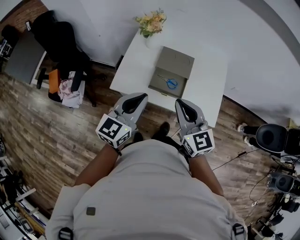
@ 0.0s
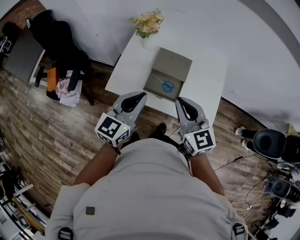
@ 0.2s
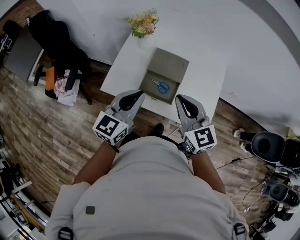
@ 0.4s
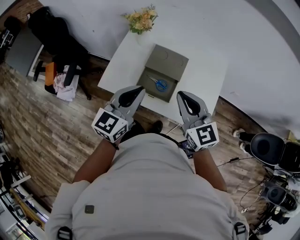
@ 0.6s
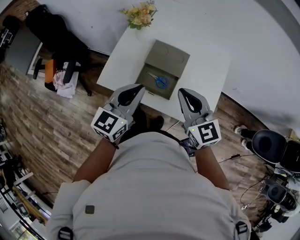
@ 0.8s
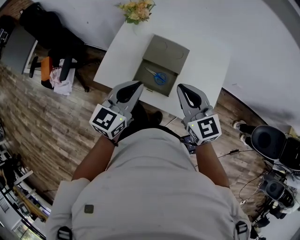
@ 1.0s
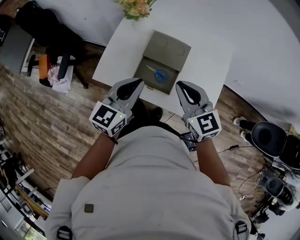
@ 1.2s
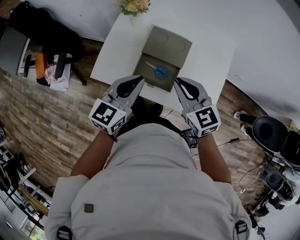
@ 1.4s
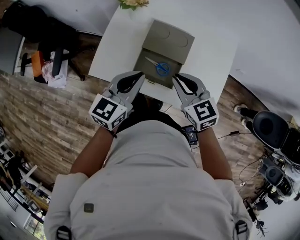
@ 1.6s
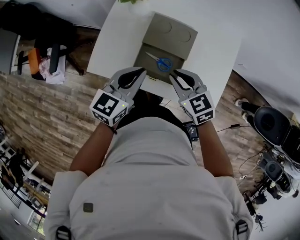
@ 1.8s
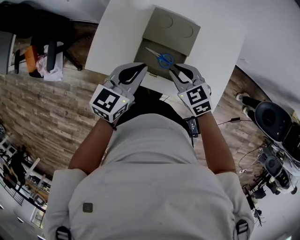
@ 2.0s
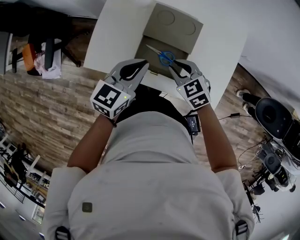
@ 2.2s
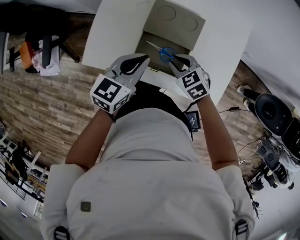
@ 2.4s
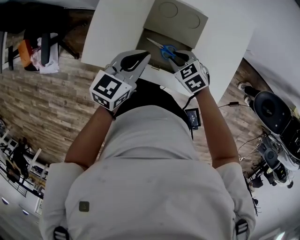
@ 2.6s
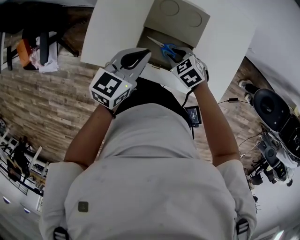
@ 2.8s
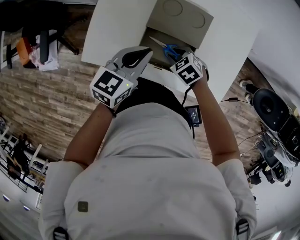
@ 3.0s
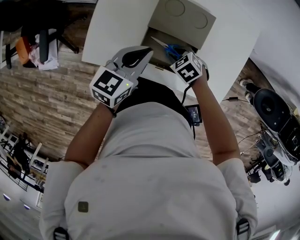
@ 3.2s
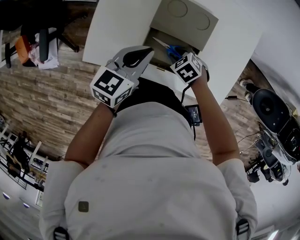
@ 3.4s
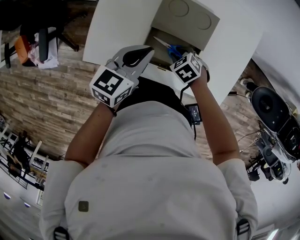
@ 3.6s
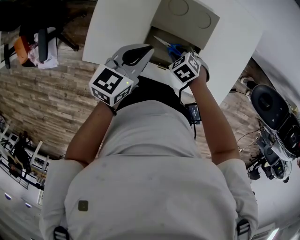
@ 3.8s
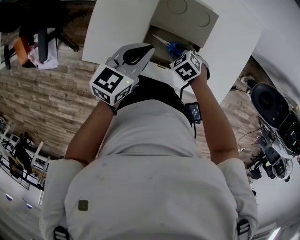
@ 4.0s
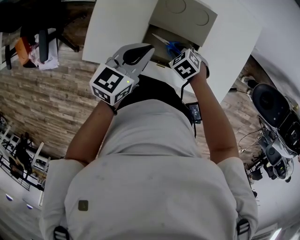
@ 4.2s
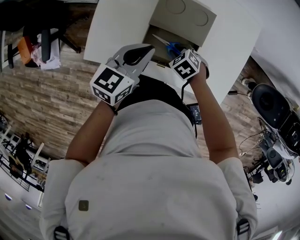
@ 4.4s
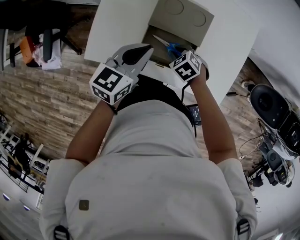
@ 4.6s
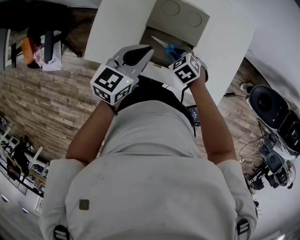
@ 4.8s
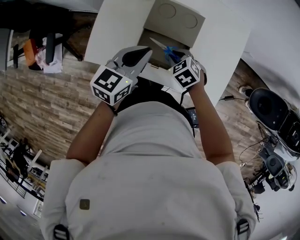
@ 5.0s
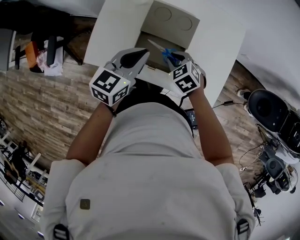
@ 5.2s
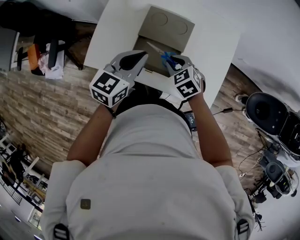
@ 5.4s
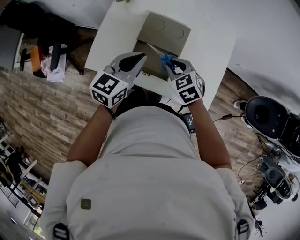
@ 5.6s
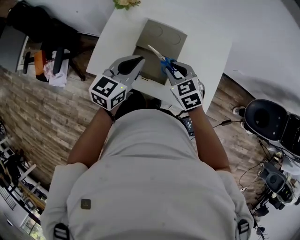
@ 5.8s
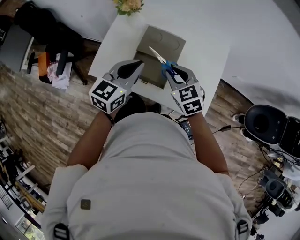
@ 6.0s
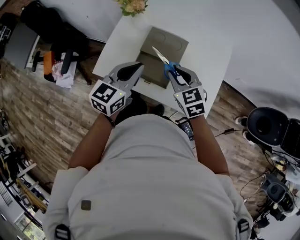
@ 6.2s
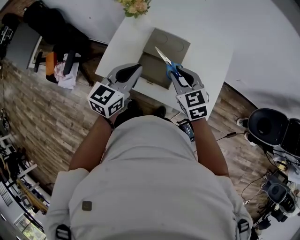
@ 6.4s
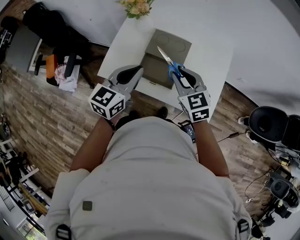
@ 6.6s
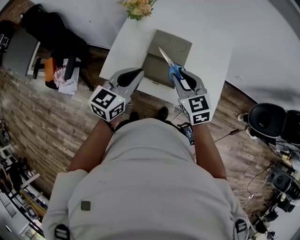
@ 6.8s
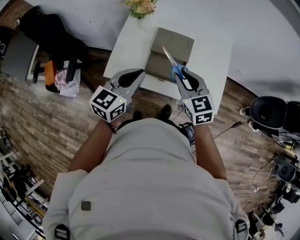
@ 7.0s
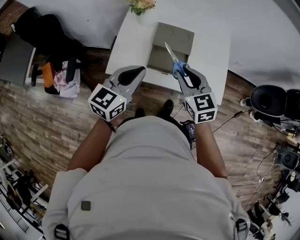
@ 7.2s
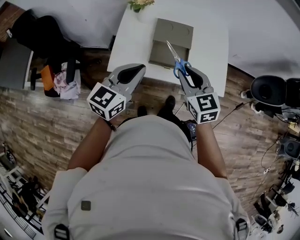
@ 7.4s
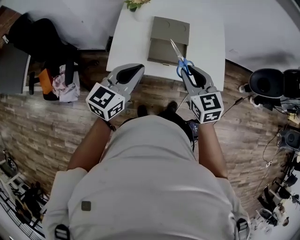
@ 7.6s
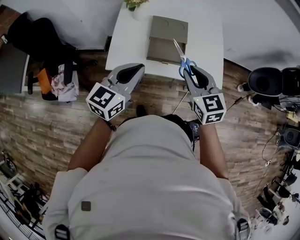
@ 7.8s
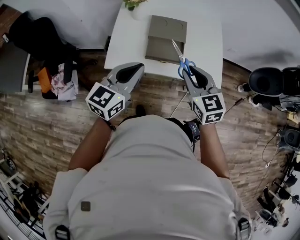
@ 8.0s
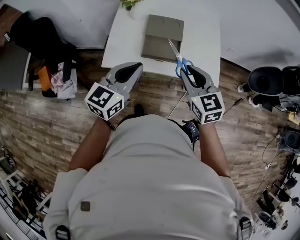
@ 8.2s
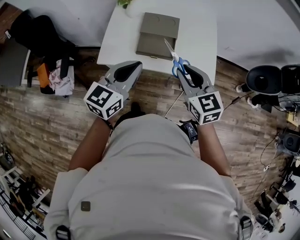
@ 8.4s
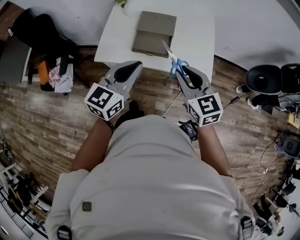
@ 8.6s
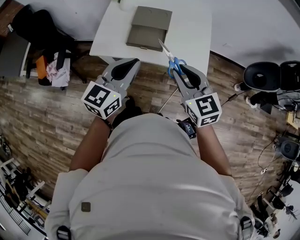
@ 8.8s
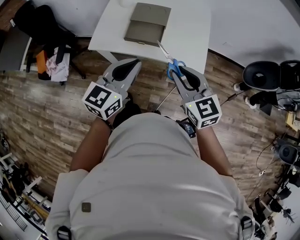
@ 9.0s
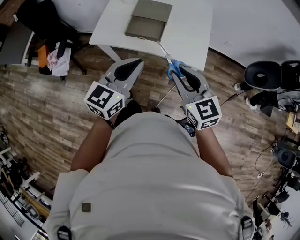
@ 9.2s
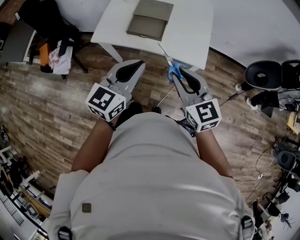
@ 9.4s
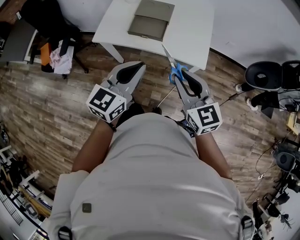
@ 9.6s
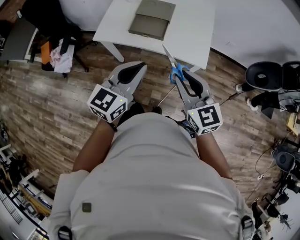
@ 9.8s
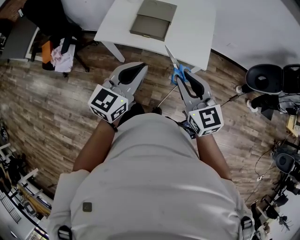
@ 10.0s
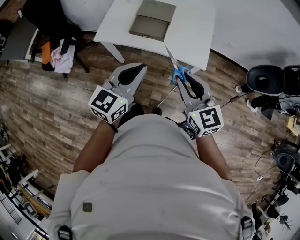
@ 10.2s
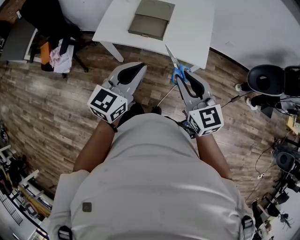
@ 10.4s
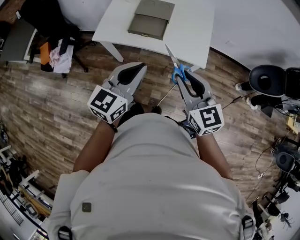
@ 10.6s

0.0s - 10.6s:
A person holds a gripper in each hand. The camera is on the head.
0.0s - 1.6s: The grippers both shift forward, downward and to the right by some 20 cm. The right gripper turns by approximately 20 degrees.
1.6s - 3.0s: The left gripper goes roughly 10 cm downward and forward, while the right gripper travels downward by about 25 cm, tilts its fingers about 40 degrees downward, and opens up.
3.0s - 4.6s: The grippers make only small movements.
4.6s - 6.0s: The right gripper shifts approximately 25 cm upward, and points its fingers about 40 degrees further upward. The left gripper is displaced upward, to the right and backward by approximately 15 cm.
6.0s - 7.6s: The left gripper travels backward and to the left by approximately 20 cm. The right gripper is displaced backward, upward and to the left by about 20 cm, and changes its angle by some 30 degrees.
7.6s - 9.0s: Both grippers travel together to the right and backward, some 20 cm.
9.0s - 10.6s: Both grippers move backward, approximately 5 cm.

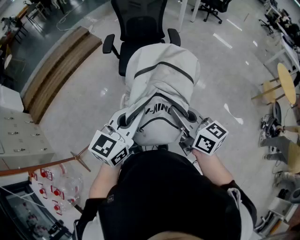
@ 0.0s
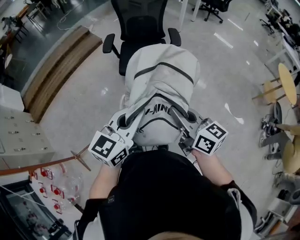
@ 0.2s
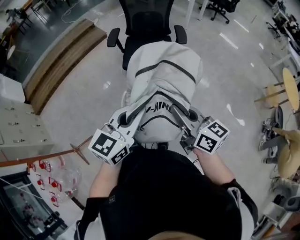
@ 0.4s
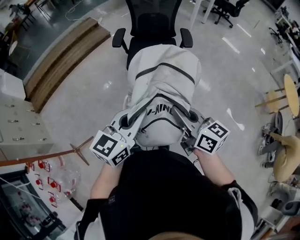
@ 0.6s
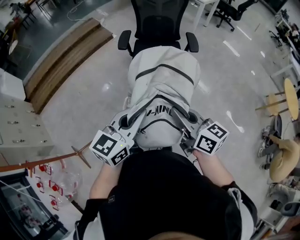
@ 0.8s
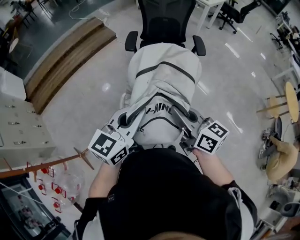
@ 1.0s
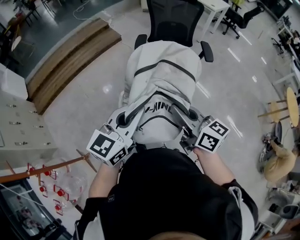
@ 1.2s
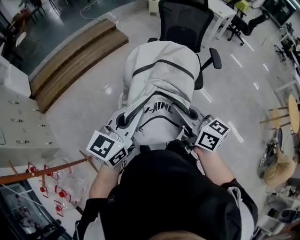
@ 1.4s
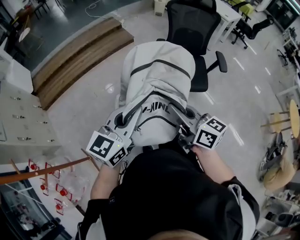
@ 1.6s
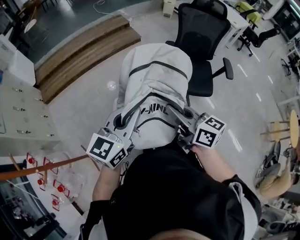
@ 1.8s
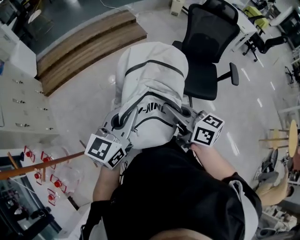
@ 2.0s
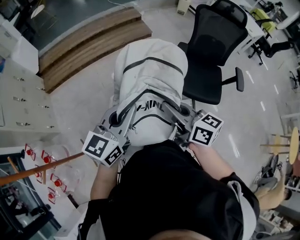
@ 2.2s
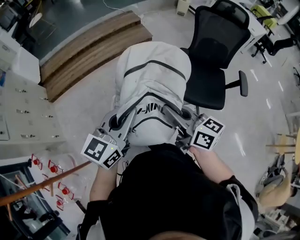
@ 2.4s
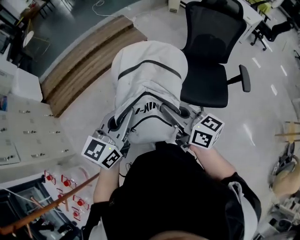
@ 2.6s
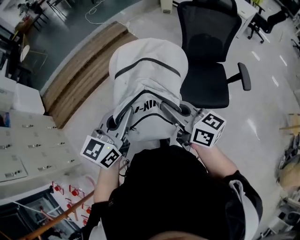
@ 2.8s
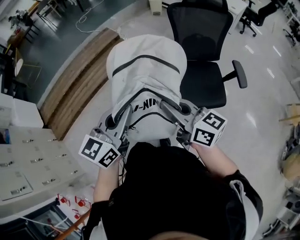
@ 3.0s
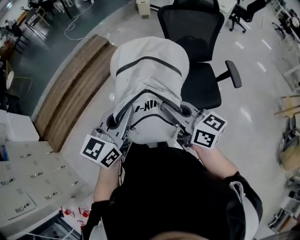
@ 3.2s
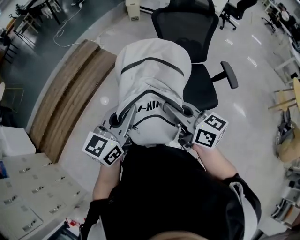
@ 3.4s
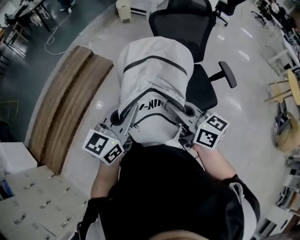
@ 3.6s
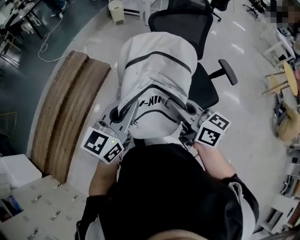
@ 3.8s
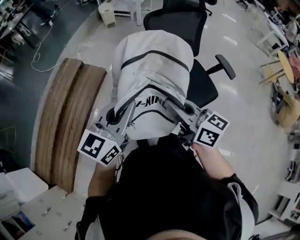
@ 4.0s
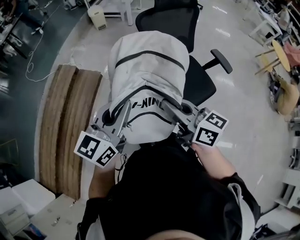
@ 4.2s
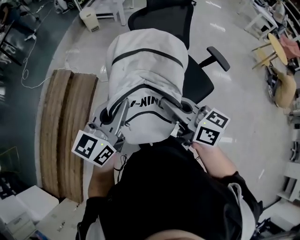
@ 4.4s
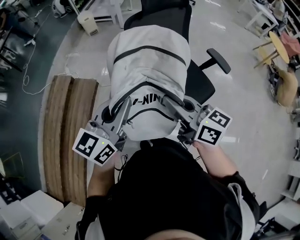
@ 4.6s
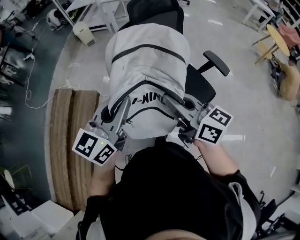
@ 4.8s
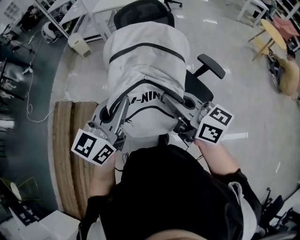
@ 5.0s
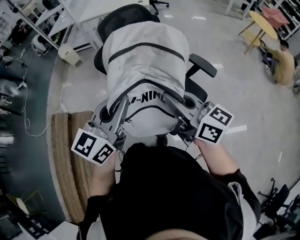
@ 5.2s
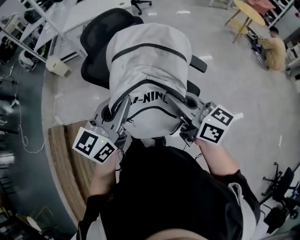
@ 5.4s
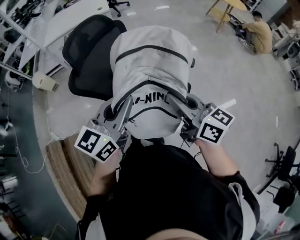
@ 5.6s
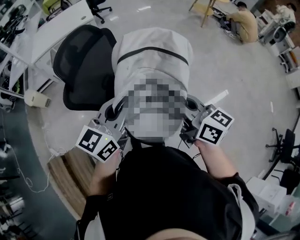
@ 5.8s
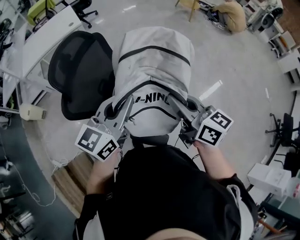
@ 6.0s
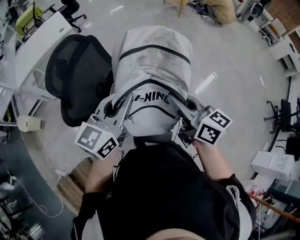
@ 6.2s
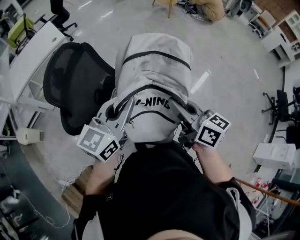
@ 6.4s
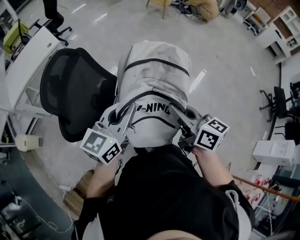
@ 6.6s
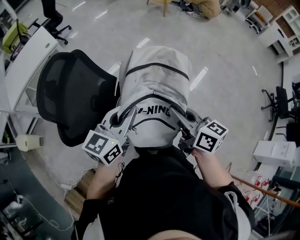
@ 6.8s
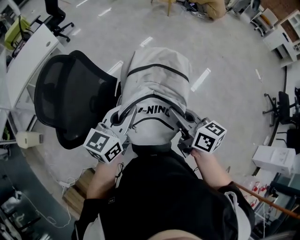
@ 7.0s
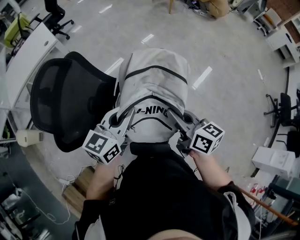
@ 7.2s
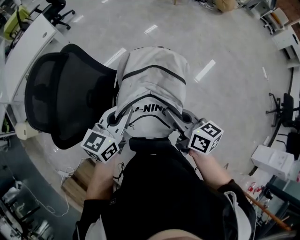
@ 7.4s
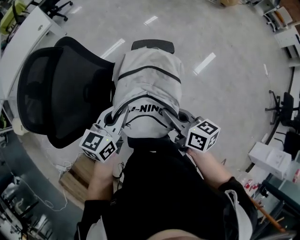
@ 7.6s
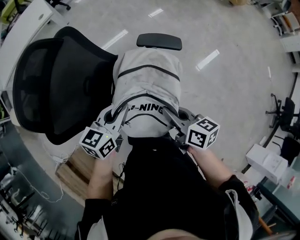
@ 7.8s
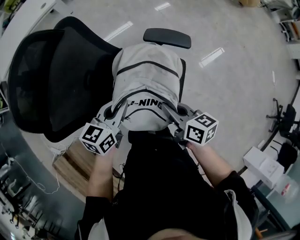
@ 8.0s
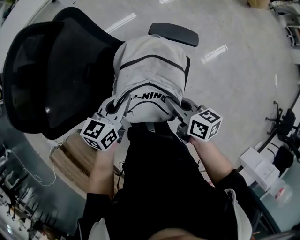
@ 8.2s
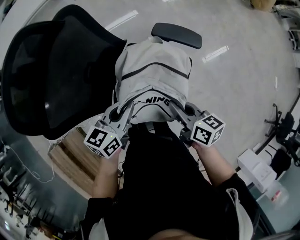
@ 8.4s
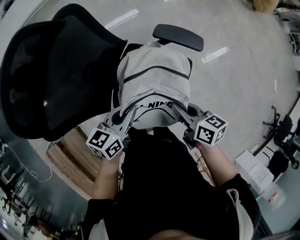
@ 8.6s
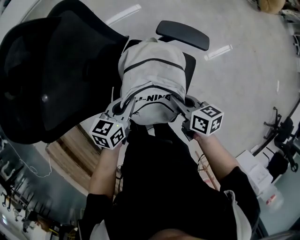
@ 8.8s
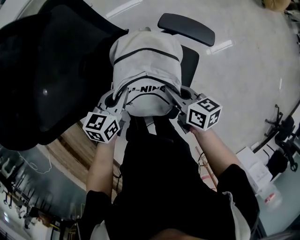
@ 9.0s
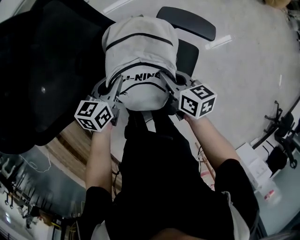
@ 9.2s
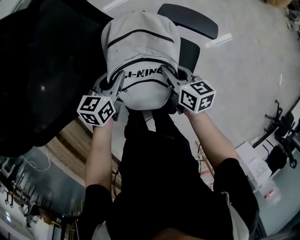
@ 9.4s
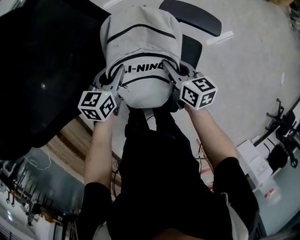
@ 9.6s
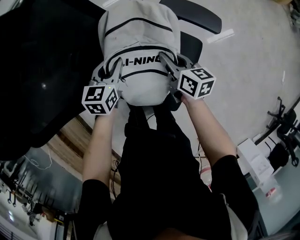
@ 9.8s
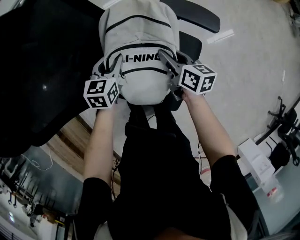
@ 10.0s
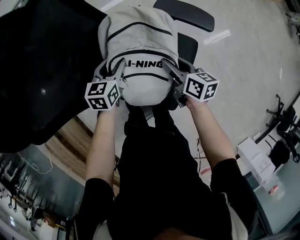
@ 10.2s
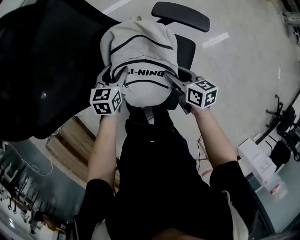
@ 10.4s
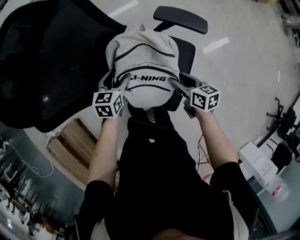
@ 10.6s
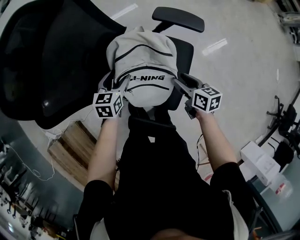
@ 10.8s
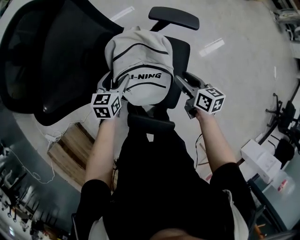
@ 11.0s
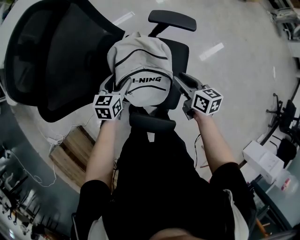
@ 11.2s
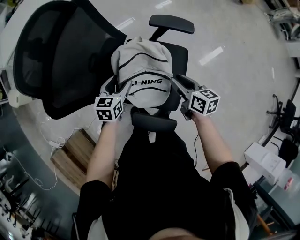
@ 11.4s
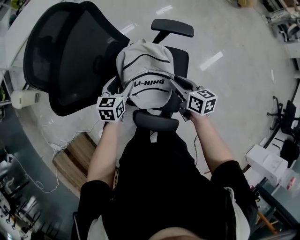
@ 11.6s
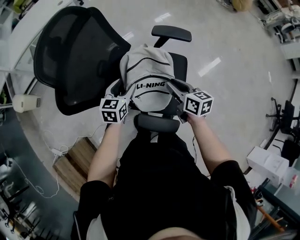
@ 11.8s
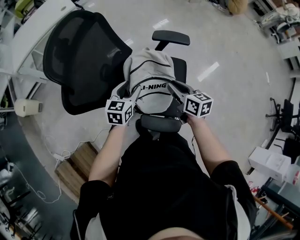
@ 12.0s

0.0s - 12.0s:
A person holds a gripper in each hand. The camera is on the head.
0.0s - 1.6s: Both grippers travel together to the left, approximately 35 cm.
1.6s - 3.0s: The two grippers go about 35 cm forward.
3.0s - 4.4s: The left gripper ends up approximately 35 cm from where it was, and changes its angle by approximately 30 degrees; the right gripper changes place by about 25 cm, and swivels about 30 degrees.
4.4s - 6.0s: The right gripper shifts by about 35 cm, and turns by approximately 50 degrees. The left gripper moves some 40 cm, and swivels some 50 degrees.
6.0s - 7.6s: The left gripper moves downward and forward, some 20 cm, and rotates approximately 20 degrees. The right gripper shifts approximately 15 cm downward, and swivels about 20 degrees.
7.6s - 9.0s: The right gripper shifts approximately 20 cm downward and forward, while the left gripper travels downward by some 20 cm, and rotates roughly 20 degrees.
9.0s - 10.4s: The two grippers go some 5 cm downward. The right gripper moves some 10 cm forward and comes back, and opens up. The left gripper travels forward and back again, about 10 cm each way, and opens.
10.4s - 12.0s: The two grippers go approximately 20 cm upward and backward. The right gripper closes up.

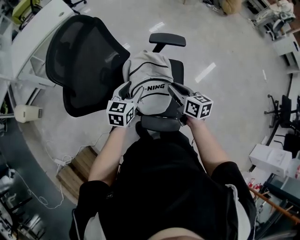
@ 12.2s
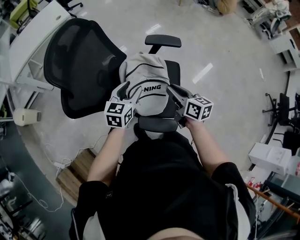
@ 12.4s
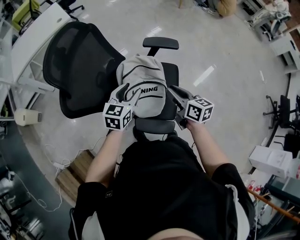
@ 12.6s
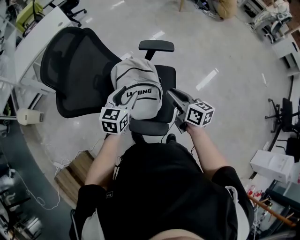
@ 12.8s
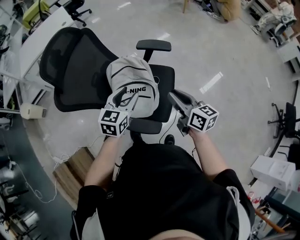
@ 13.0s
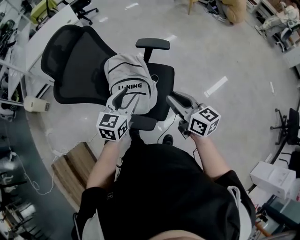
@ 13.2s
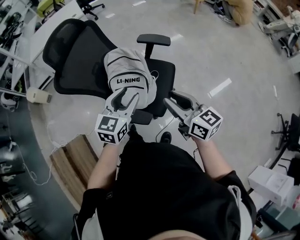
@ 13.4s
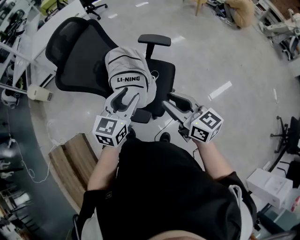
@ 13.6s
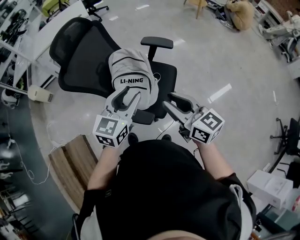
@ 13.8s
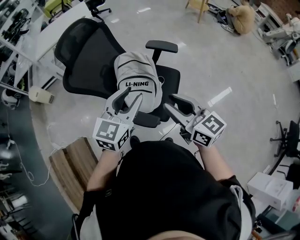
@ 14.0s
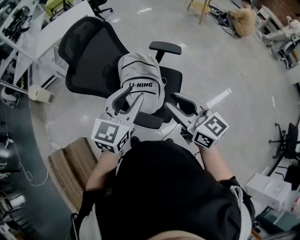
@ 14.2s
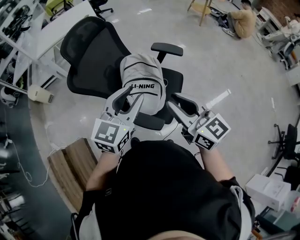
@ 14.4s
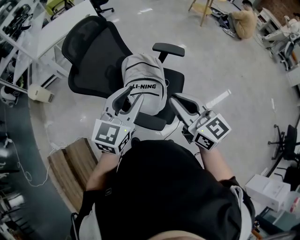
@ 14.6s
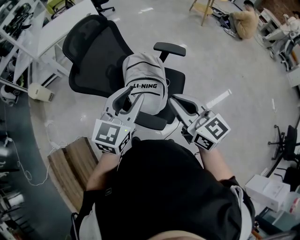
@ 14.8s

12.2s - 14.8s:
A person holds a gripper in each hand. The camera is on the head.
12.2s - 13.4s: Both grippers move to the right, backward and upward, about 25 cm. The right gripper turns by about 30 degrees.
13.4s - 14.8s: The right gripper is displaced to the left and upward by approximately 15 cm, and closes up. The left gripper travels upward and to the left by some 15 cm.
